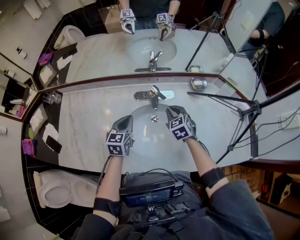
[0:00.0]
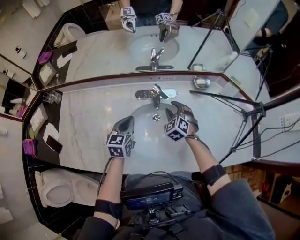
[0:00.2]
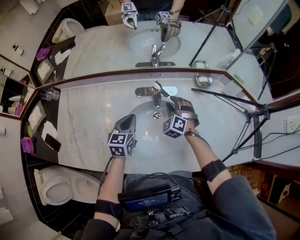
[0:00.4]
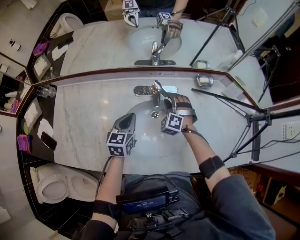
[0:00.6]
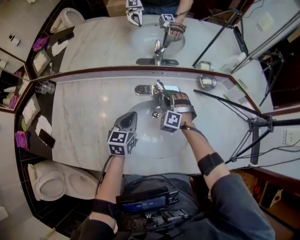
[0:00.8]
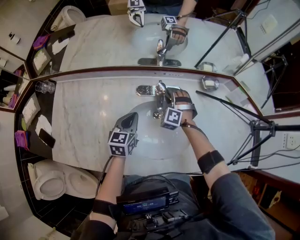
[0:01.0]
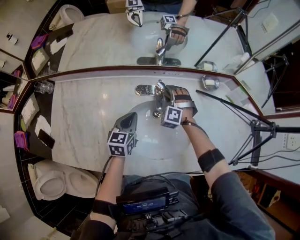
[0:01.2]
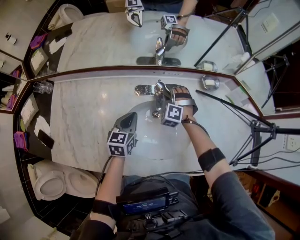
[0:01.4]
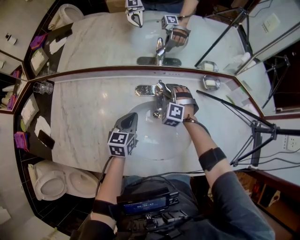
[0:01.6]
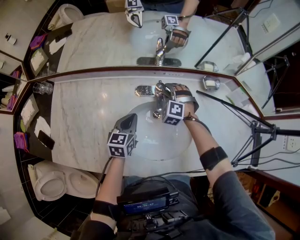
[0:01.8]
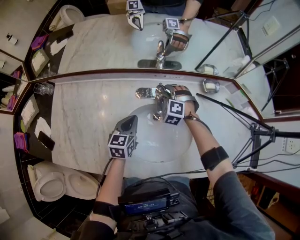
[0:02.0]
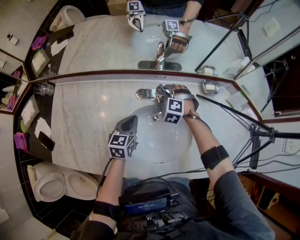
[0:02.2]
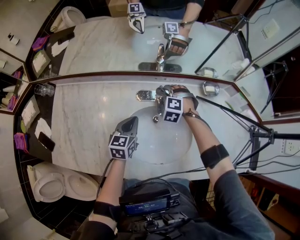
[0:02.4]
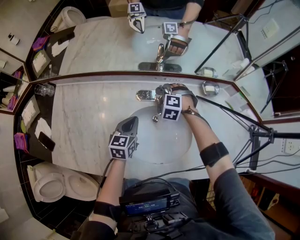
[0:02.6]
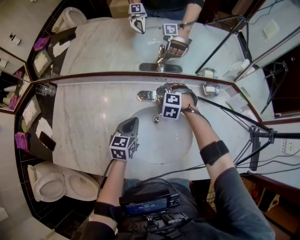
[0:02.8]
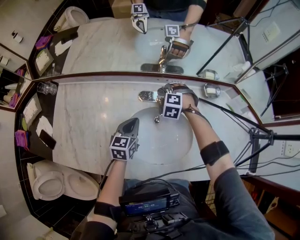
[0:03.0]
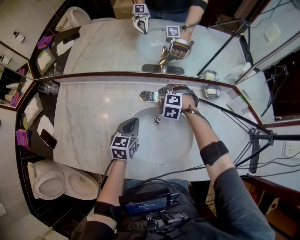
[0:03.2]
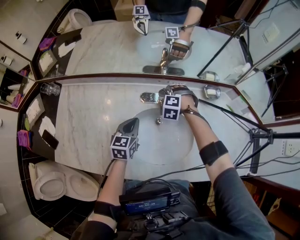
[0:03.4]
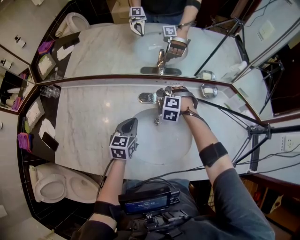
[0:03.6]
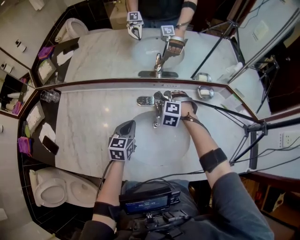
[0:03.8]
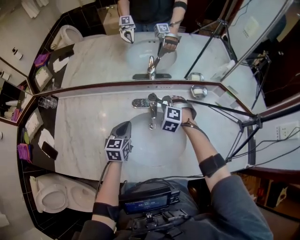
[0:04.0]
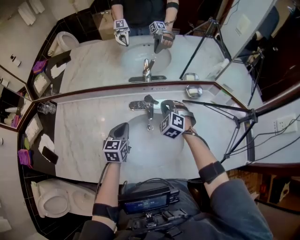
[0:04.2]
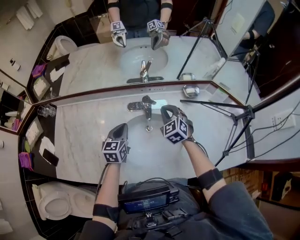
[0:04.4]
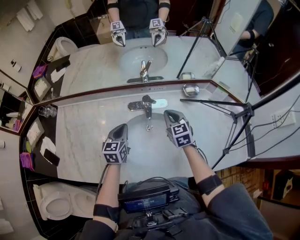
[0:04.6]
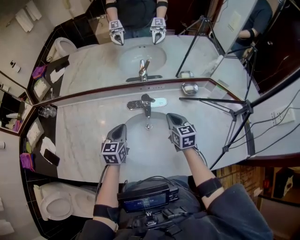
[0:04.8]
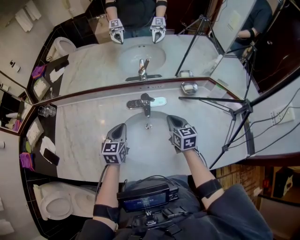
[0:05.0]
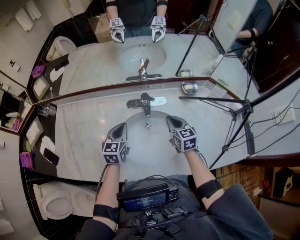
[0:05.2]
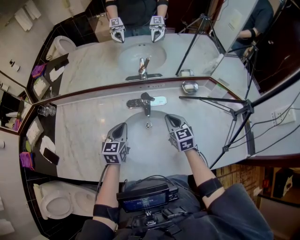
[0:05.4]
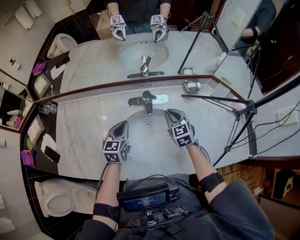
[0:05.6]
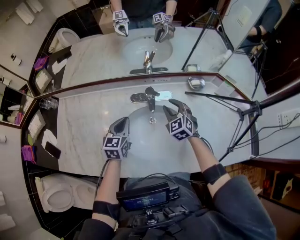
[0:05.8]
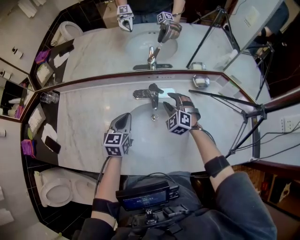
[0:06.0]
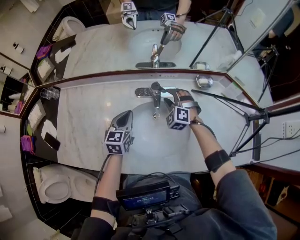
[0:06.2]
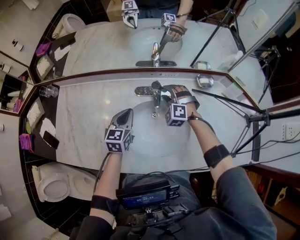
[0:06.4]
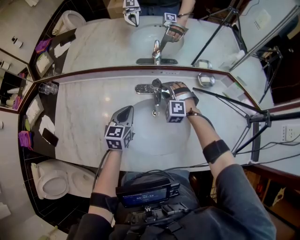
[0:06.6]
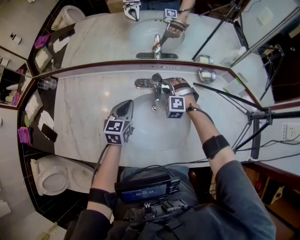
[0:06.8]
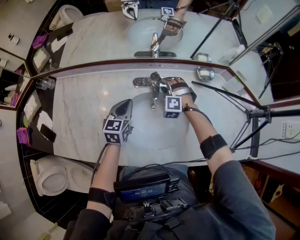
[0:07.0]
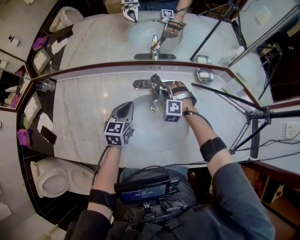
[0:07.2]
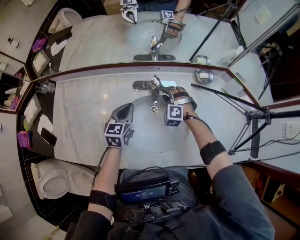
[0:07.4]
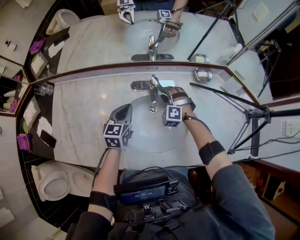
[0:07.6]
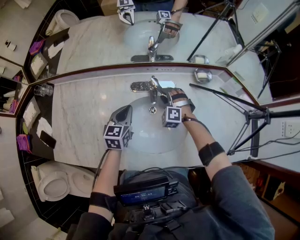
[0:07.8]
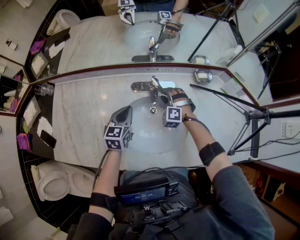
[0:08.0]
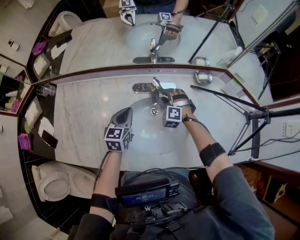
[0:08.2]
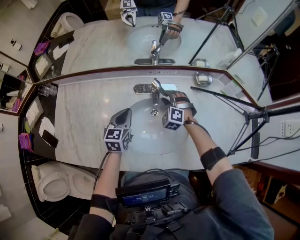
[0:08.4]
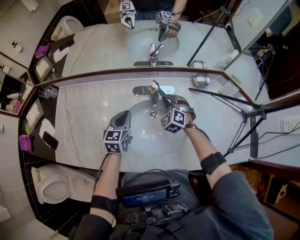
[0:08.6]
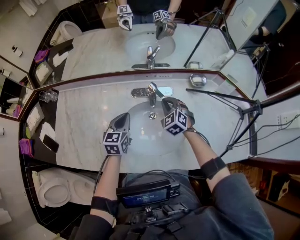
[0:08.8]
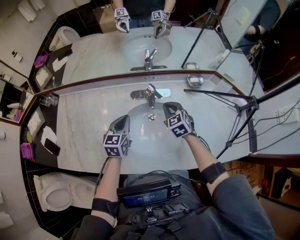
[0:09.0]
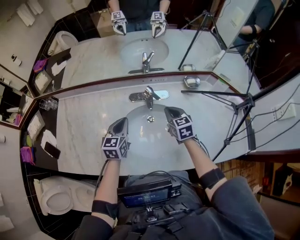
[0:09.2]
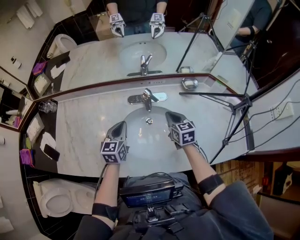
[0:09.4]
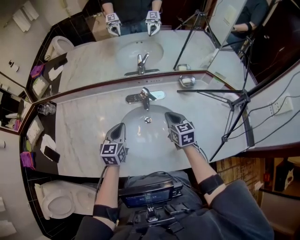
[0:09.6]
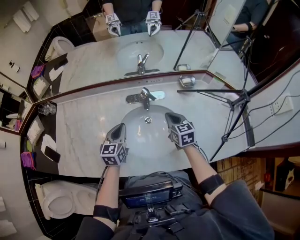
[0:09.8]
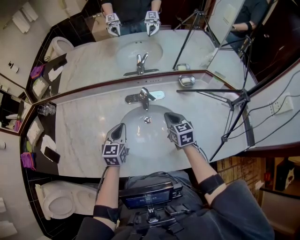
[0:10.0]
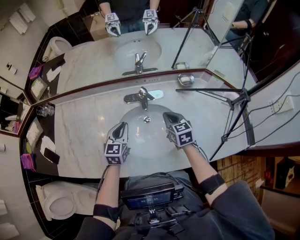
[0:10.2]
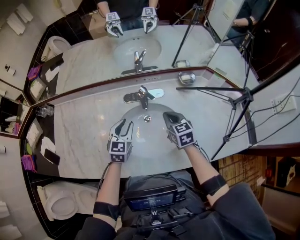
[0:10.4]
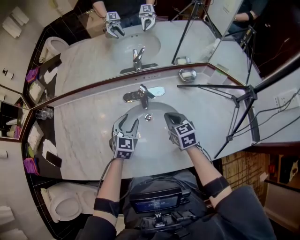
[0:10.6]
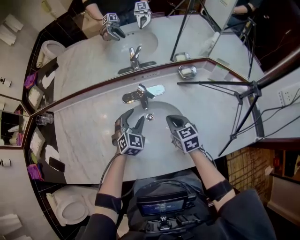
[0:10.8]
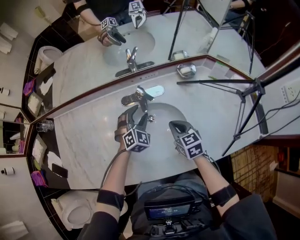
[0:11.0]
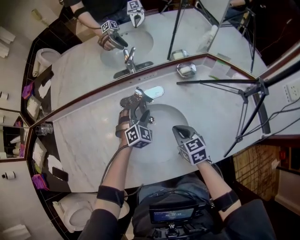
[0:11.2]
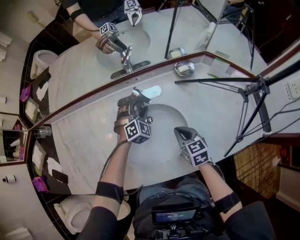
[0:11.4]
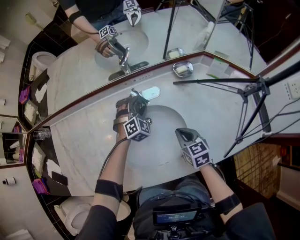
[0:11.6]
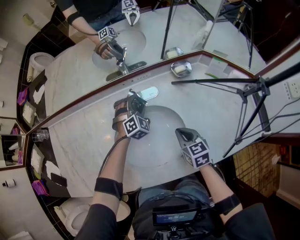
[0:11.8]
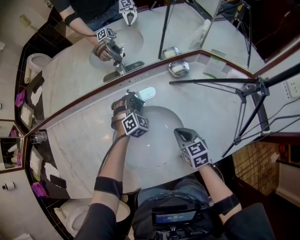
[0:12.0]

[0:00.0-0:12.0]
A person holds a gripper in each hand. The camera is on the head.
0:00.0 to 0:01.6: The left gripper goes some 5 cm downward, while the right gripper moves forward, downward and to the left, about 15 cm, rolls counterclockwise, seen from behind, by about 50 degrees, and opens up.
0:01.6 to 0:03.0: The right gripper swivels roughly 20 degrees.
0:03.0 to 0:04.4: The right gripper heads upward, backward and to the right, covering some 15 cm, tips its fingers upward by approximately 30 degrees, and closes up.
0:04.4 to 0:06.0: The right gripper travels backward and back again, about 5 cm each way, rotates approximately 20 degrees, and opens its fingers.
0:06.0 to 0:07.6: The right gripper goes about 10 cm downward, and turns by about 20 degrees.
0:07.6 to 0:09.0: The right gripper heads upward and backward, covering about 10 cm, twists about 50 degrees clockwise, seen from behind, and closes up, while the left gripper moves about 5 cm.
0:09.0 to 0:10.4: The left gripper opens up; the right gripper goes about 5 cm backward, and swivels some 20 degrees.
0:10.4 to 0:12.0: The left gripper heads forward, to the right and downward, covering roughly 25 cm, rotates around the line of its fingers by some 50 degrees, clockwise from behind, and opens its fingers, while the right gripper moves downward and to the right, about 10 cm.

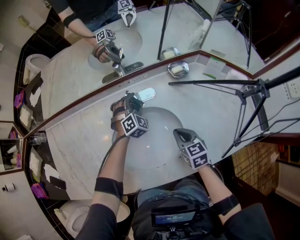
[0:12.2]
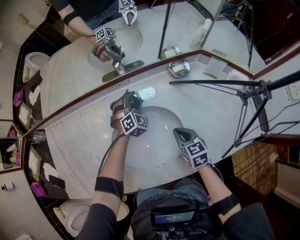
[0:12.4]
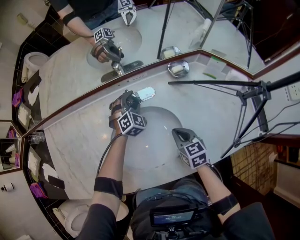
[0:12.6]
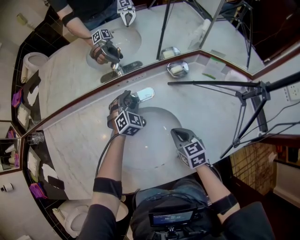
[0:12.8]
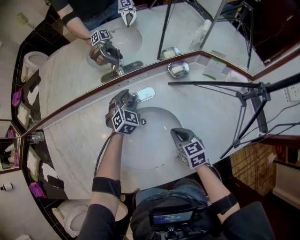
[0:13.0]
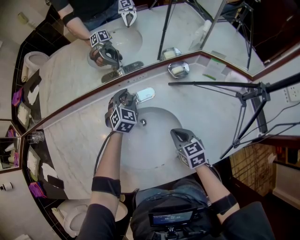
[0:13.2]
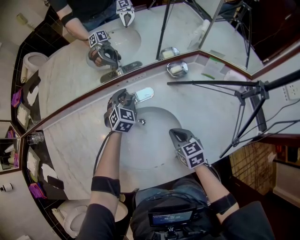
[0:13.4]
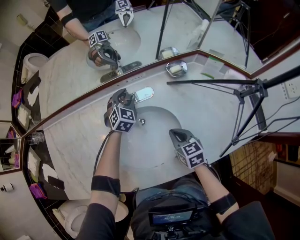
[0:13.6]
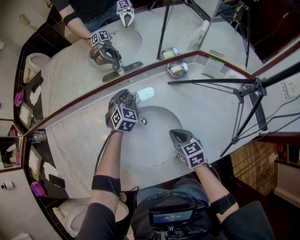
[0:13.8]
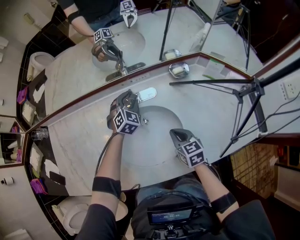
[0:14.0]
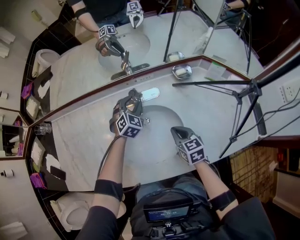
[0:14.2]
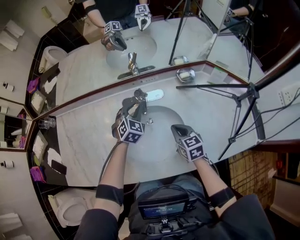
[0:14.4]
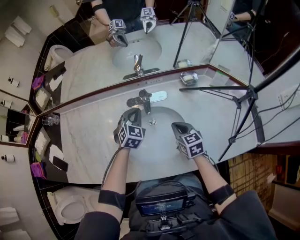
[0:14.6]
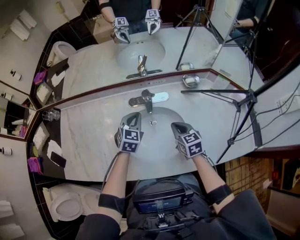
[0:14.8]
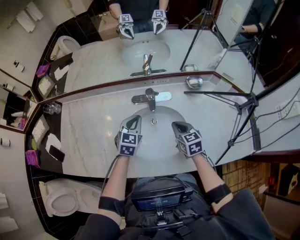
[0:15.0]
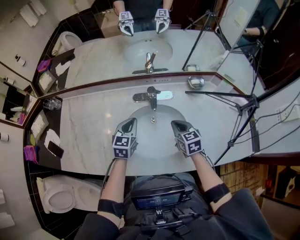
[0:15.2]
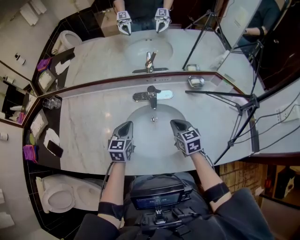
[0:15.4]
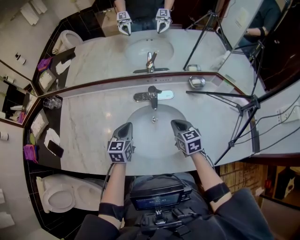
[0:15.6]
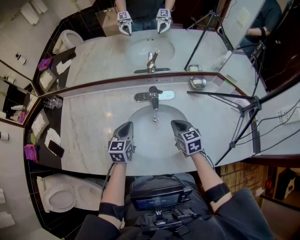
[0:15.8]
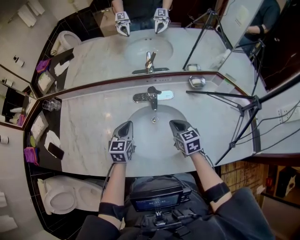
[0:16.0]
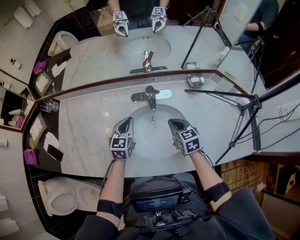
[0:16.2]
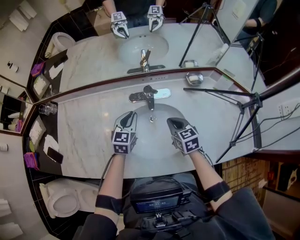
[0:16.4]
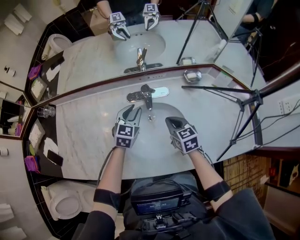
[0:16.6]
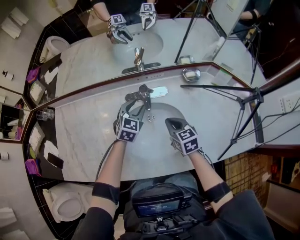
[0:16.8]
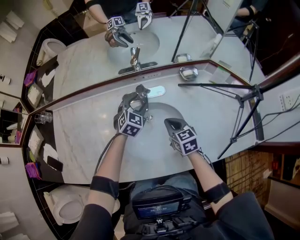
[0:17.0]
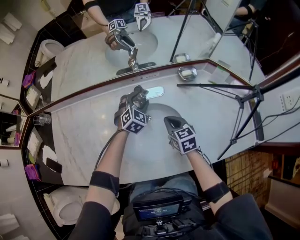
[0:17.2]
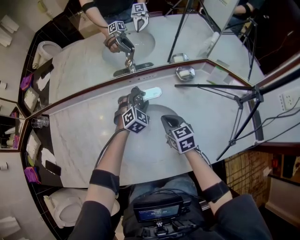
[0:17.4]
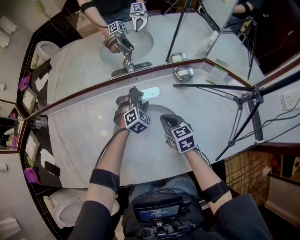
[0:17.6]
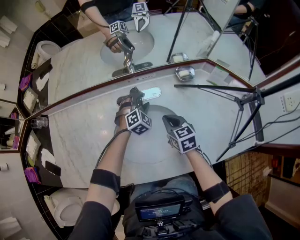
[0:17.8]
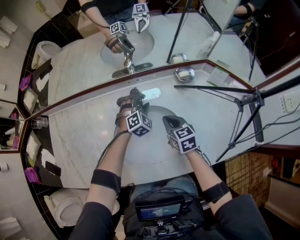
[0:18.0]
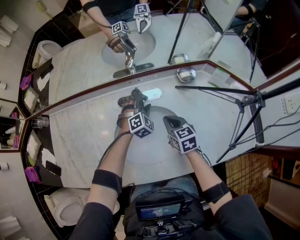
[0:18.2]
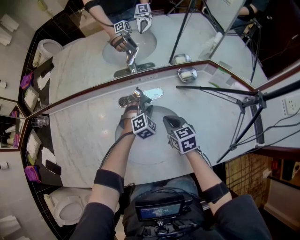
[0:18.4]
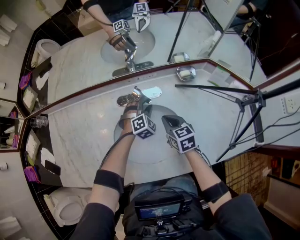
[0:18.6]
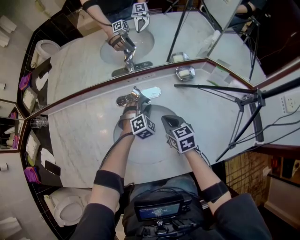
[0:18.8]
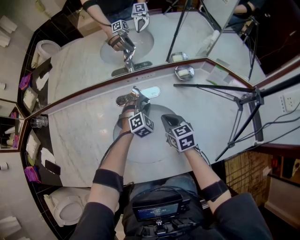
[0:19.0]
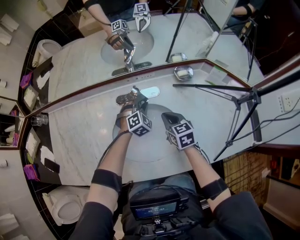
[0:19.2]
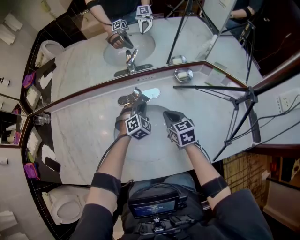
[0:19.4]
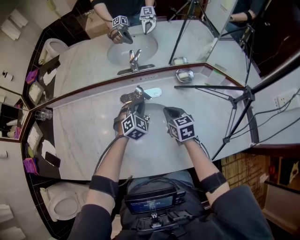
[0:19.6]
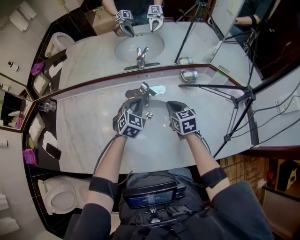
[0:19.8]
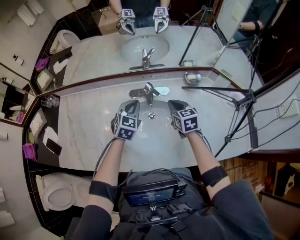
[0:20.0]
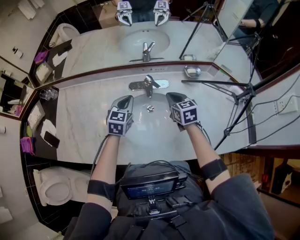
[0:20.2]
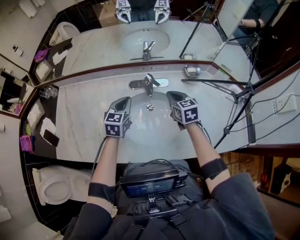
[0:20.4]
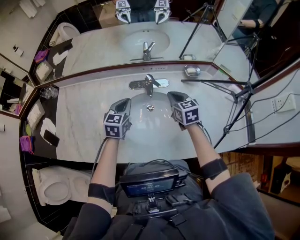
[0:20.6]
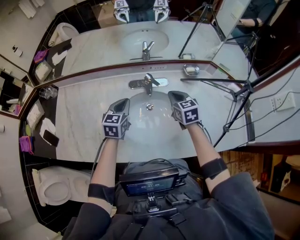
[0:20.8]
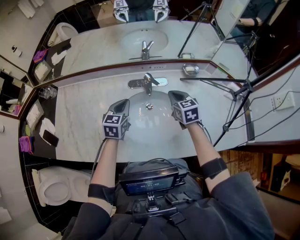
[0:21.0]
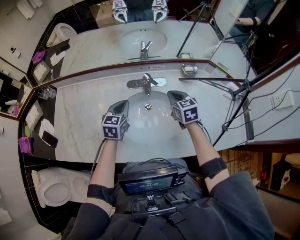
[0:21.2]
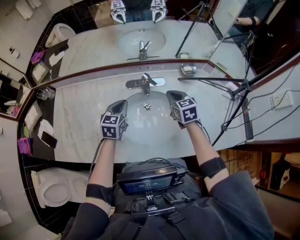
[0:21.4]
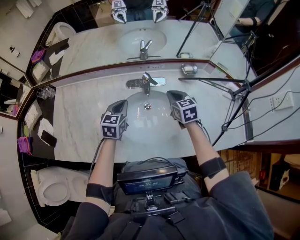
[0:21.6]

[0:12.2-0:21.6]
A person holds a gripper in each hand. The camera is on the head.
0:12.2 to 0:13.8: The grippers move only a little.
0:13.8 to 0:15.4: The right gripper heads upward and to the left, covering approximately 10 cm; the left gripper shifts about 25 cm backward, to the left and upward, rolls counterclockwise, seen from behind, by some 40 degrees, and closes.
0:15.4 to 0:17.0: The left gripper travels to the right and forward by about 20 cm, rotates some 40 degrees, and opens its fingers.
0:17.0 to 0:18.4: The left gripper shifts roughly 10 cm downward and to the right, and swivels some 30 degrees.
0:18.4 to 0:20.0: The right gripper heads upward, covering some 5 cm. The left gripper is displaced upward, to the left and backward by roughly 20 cm, changes its angle by roughly 40 degrees, and closes.
0:20.0 to 0:21.6: The left gripper moves to the left, approximately 5 cm.

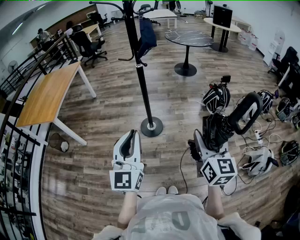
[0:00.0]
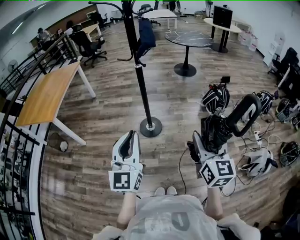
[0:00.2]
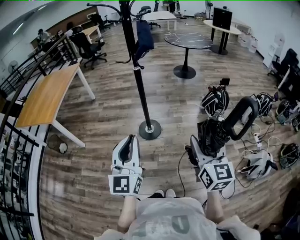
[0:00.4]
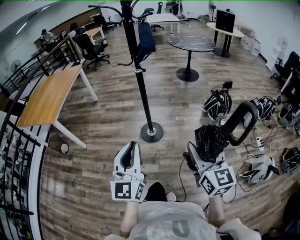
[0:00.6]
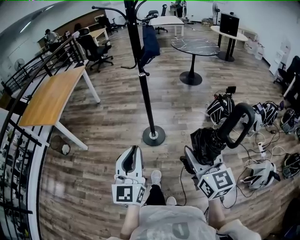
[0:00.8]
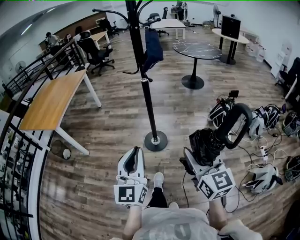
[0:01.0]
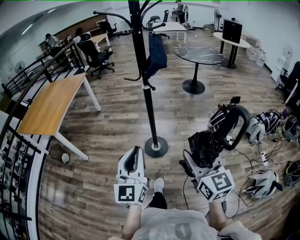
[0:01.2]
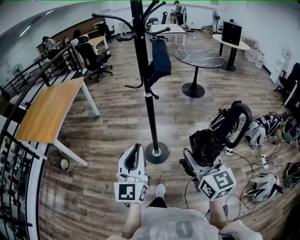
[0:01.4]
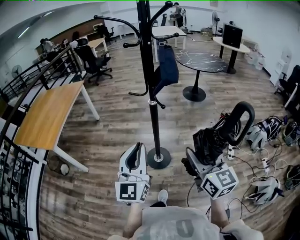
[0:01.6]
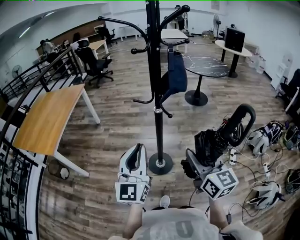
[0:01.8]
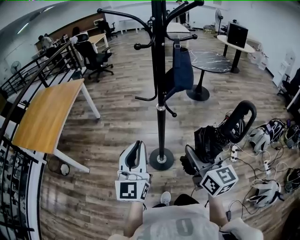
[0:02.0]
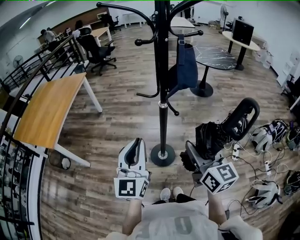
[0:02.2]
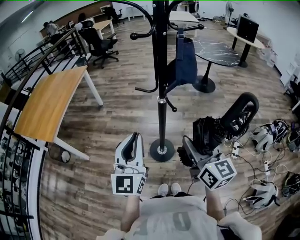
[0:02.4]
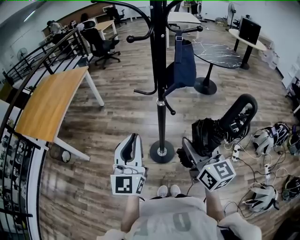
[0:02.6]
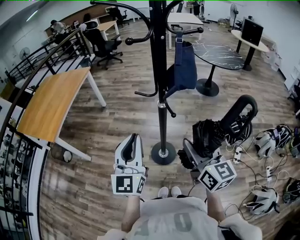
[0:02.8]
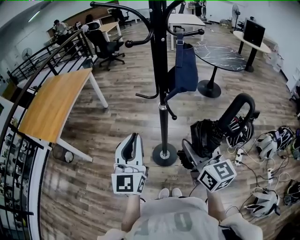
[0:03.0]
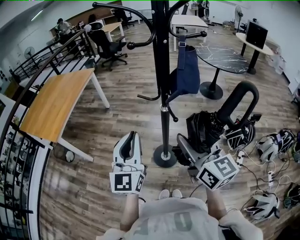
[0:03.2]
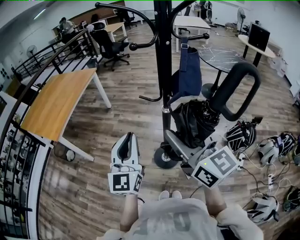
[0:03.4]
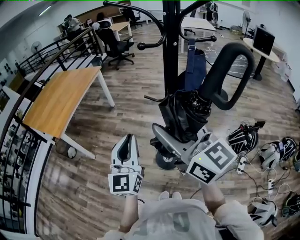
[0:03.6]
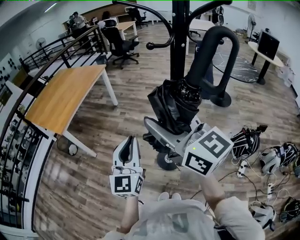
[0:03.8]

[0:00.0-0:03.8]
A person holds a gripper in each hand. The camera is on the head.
0:00.0 to 0:01.2: The right gripper goes about 15 cm forward and to the left. Meanwhile the left gripper is displaced forward by about 10 cm.
0:01.2 to 0:02.6: The grippers both shift forward by roughly 25 cm.
0:02.6 to 0:03.8: The left gripper ends up some 5 cm from where it was; the right gripper shifts about 20 cm upward, to the left and forward, and changes its angle by some 30 degrees.
